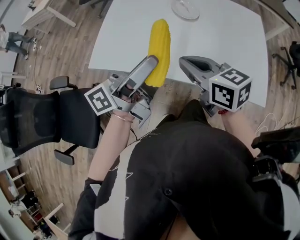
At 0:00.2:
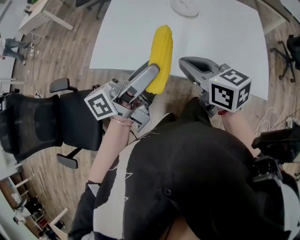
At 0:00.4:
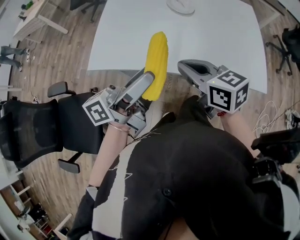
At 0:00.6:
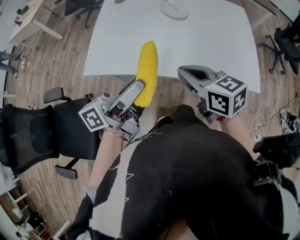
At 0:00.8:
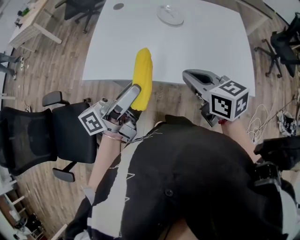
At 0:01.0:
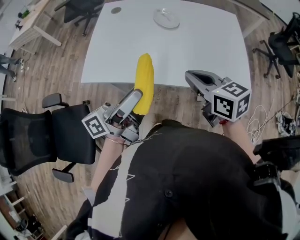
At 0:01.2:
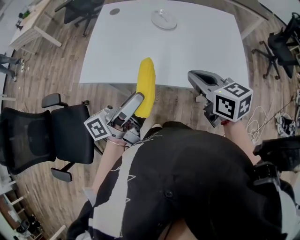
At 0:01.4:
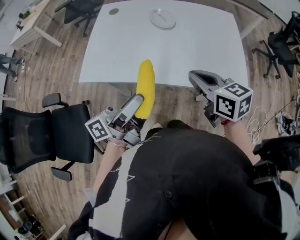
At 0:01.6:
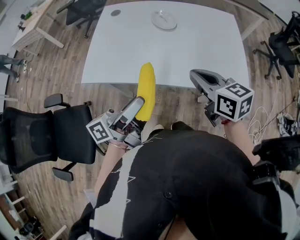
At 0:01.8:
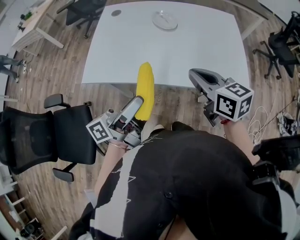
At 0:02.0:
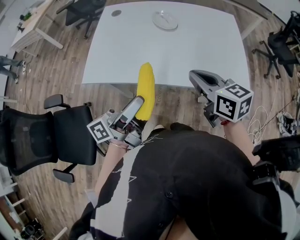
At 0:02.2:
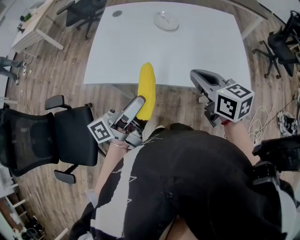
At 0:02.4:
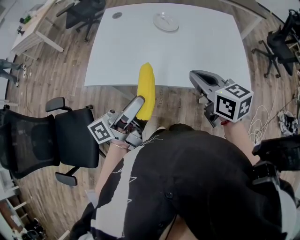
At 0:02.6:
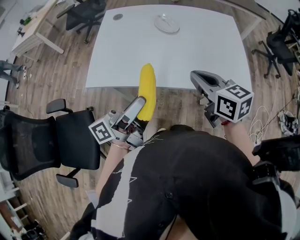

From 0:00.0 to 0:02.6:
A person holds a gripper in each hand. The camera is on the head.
From 0:00.0 to 0:01.2: The right gripper travels to the right by about 10 cm; the left gripper shifts about 5 cm backward.
From 0:01.2 to 0:02.6: The grippers stay close to where they were, moving slightly.

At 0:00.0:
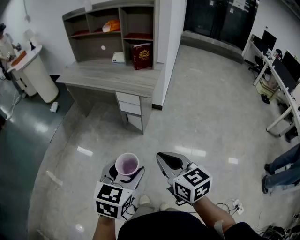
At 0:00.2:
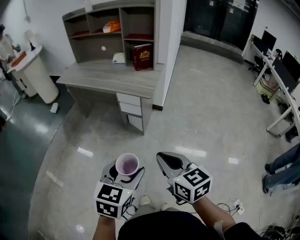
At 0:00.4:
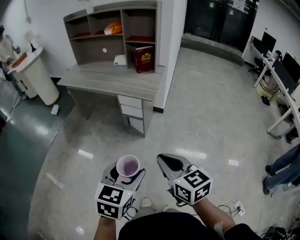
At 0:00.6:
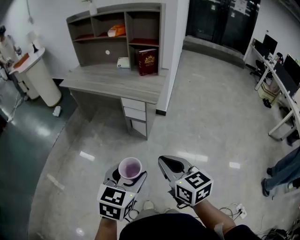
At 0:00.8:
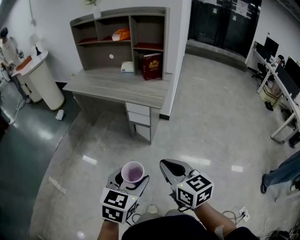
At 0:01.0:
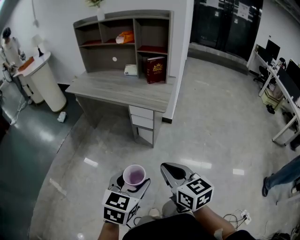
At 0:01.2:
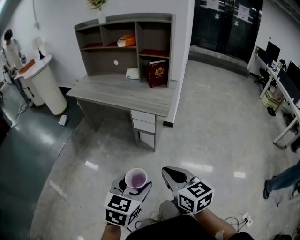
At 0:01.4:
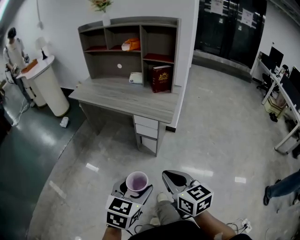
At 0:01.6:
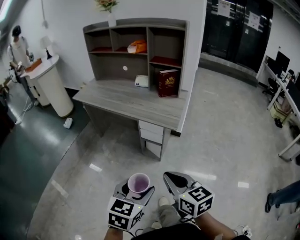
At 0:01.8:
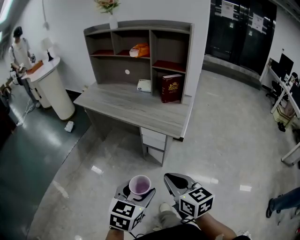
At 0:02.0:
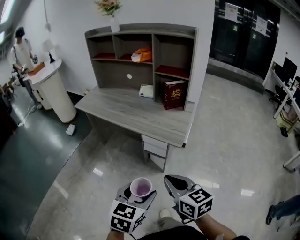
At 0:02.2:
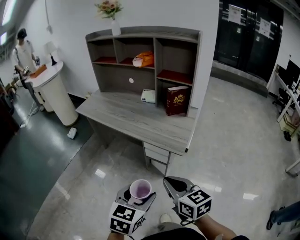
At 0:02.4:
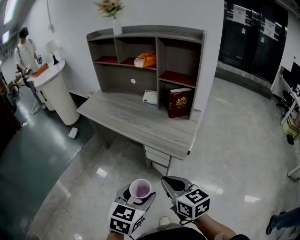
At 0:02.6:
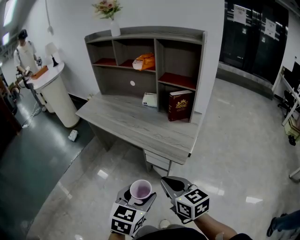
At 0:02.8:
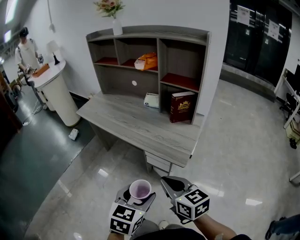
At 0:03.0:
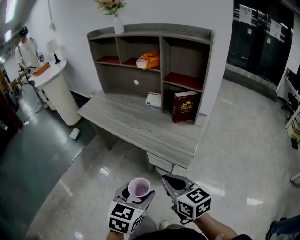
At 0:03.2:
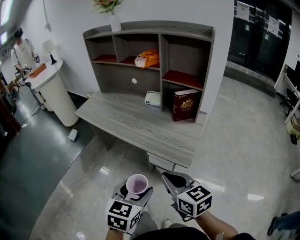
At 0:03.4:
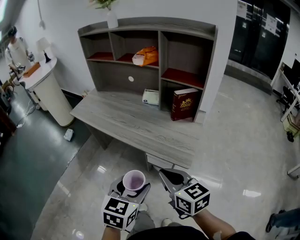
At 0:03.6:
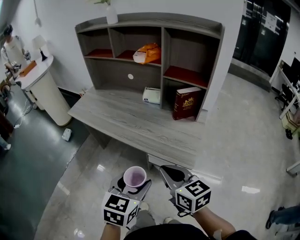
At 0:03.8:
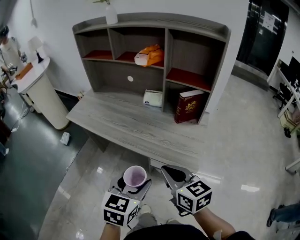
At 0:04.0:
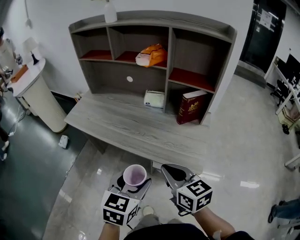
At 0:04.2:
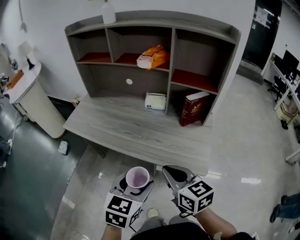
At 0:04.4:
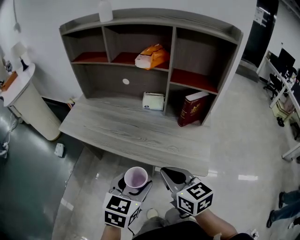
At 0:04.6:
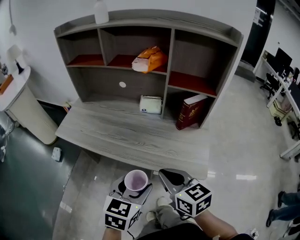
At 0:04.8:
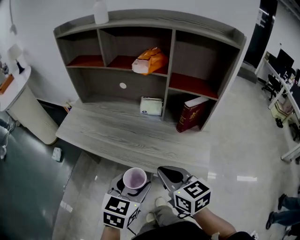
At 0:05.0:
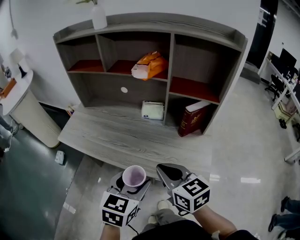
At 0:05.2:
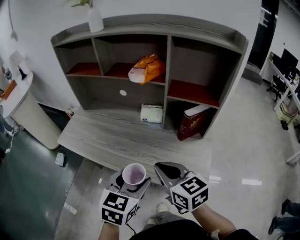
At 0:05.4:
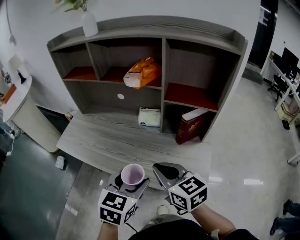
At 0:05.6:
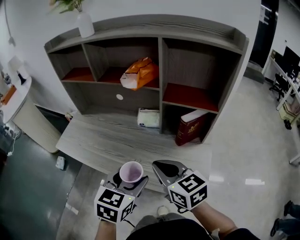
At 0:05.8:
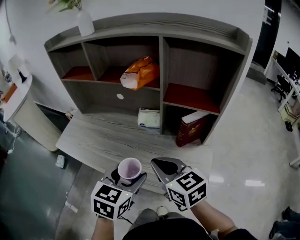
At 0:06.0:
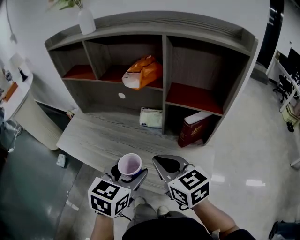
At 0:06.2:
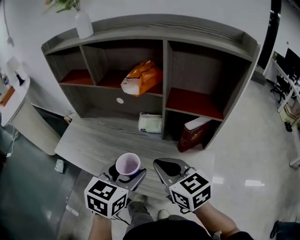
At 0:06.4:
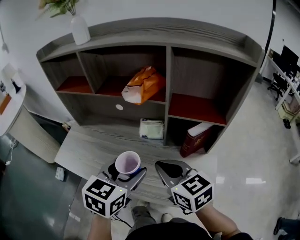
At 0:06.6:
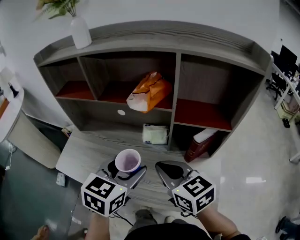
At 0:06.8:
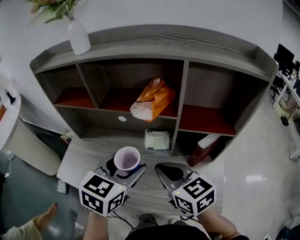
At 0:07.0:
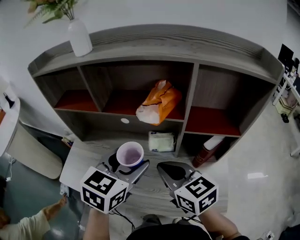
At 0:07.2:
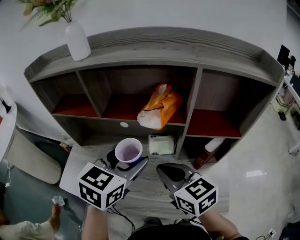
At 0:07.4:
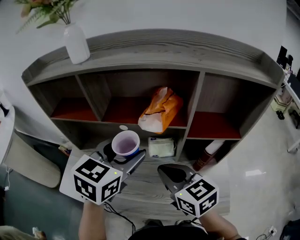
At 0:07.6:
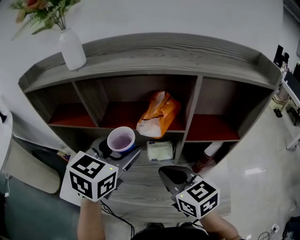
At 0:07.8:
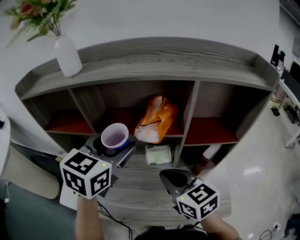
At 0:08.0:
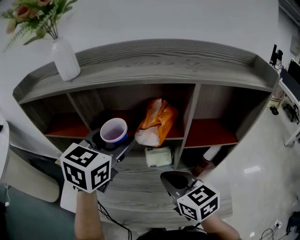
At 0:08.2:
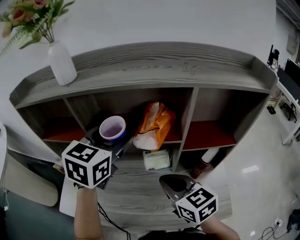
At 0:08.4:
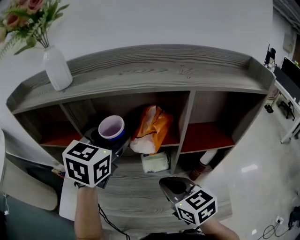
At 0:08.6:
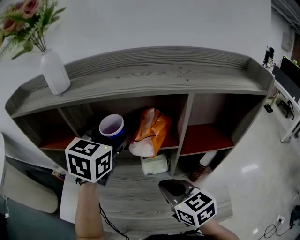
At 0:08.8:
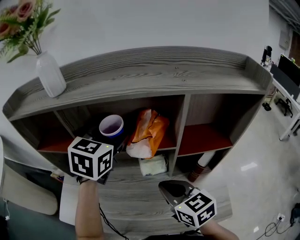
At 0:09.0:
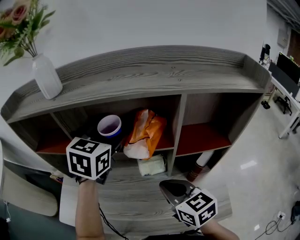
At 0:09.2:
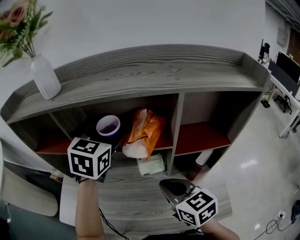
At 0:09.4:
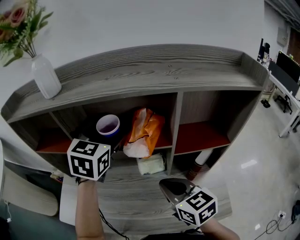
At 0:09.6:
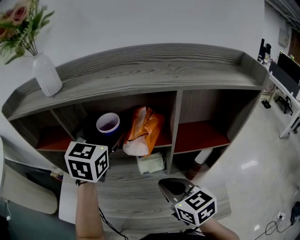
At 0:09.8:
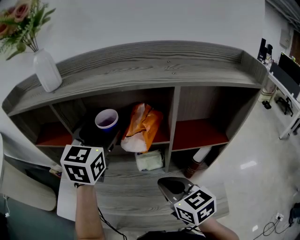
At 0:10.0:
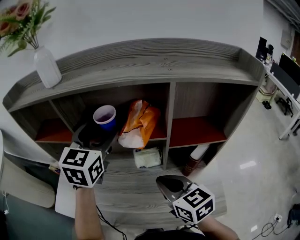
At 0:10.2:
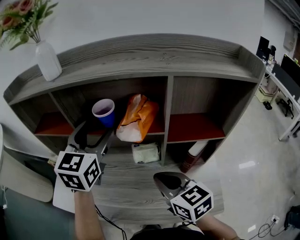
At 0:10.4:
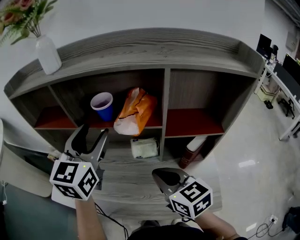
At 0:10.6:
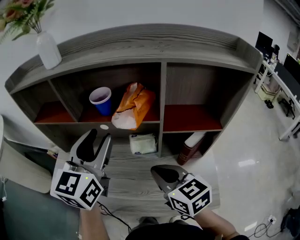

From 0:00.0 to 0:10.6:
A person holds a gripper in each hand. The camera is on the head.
From 0:00.0 to 0:01.6: Both grippers move forward and to the left, some 15 cm.
From 0:01.6 to 0:03.0: Both grippers travel together forward, about 25 cm.
From 0:03.0 to 0:04.6: The two grippers go some 25 cm forward and to the left.
From 0:04.6 to 0:06.0: Both grippers move forward, approximately 15 cm.
From 0:06.0 to 0:07.6: The right gripper heads forward and to the left, covering about 15 cm. Meanwhile the left gripper heads forward and upward, covering approximately 25 cm.
From 0:07.6 to 0:09.0: The left gripper moves forward, some 15 cm.
From 0:09.0 to 0:10.6: The left gripper is displaced backward by roughly 15 cm, and rotates approximately 20 degrees.

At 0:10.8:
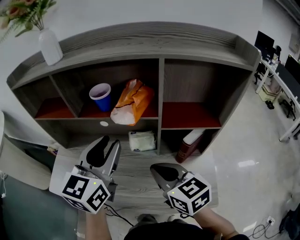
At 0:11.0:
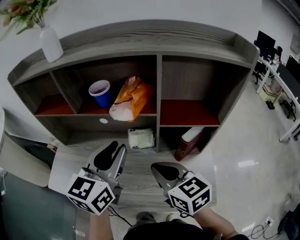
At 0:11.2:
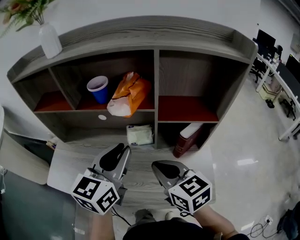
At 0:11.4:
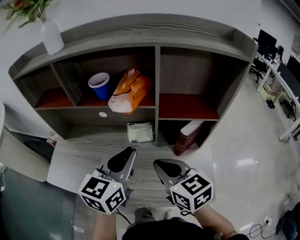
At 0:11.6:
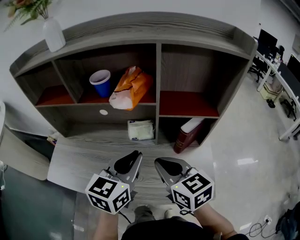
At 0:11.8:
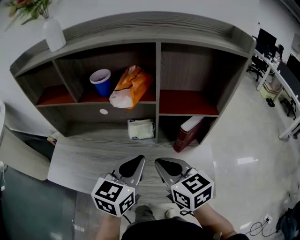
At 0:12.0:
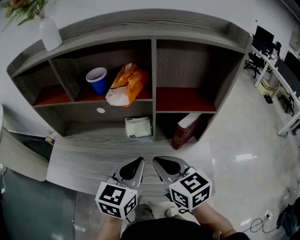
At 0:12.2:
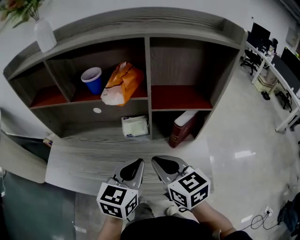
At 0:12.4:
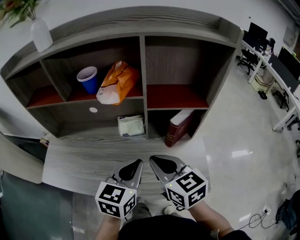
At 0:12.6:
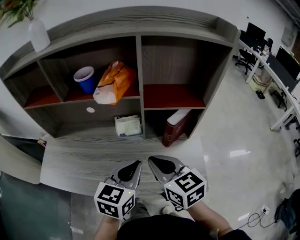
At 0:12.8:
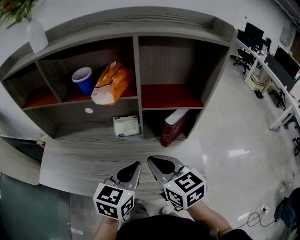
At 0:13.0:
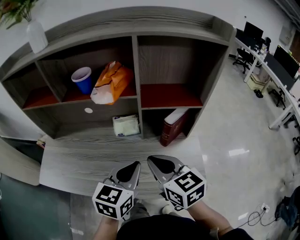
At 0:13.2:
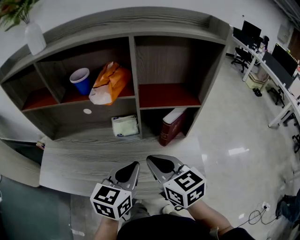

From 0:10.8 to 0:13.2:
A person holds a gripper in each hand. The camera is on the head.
From 0:10.8 to 0:12.0: The left gripper heads downward, backward and to the right, covering some 15 cm.
From 0:12.0 to 0:13.2: The grippers make only small movements.

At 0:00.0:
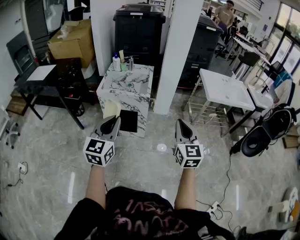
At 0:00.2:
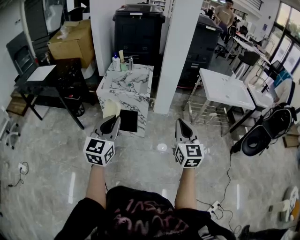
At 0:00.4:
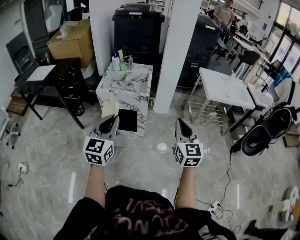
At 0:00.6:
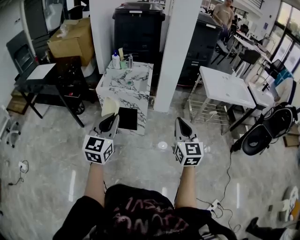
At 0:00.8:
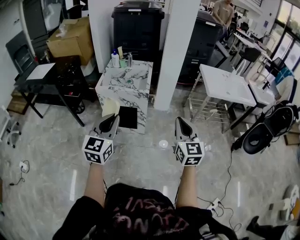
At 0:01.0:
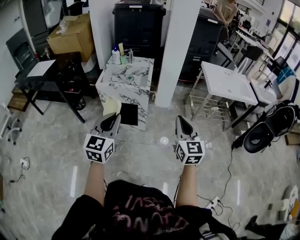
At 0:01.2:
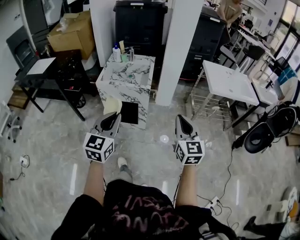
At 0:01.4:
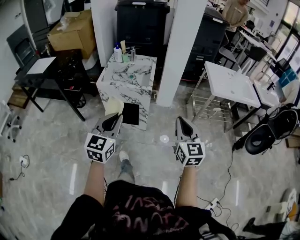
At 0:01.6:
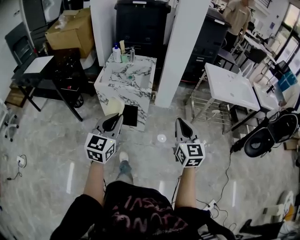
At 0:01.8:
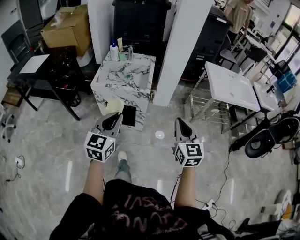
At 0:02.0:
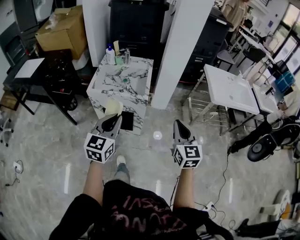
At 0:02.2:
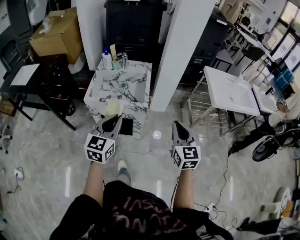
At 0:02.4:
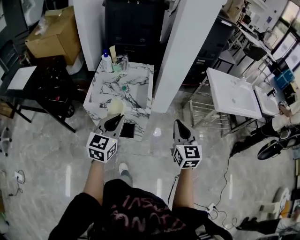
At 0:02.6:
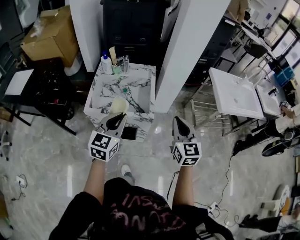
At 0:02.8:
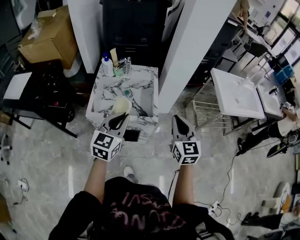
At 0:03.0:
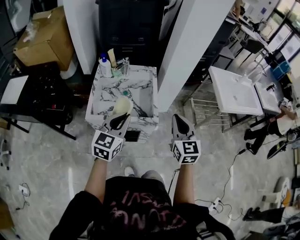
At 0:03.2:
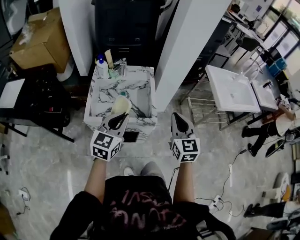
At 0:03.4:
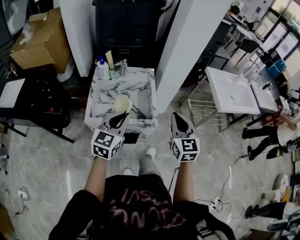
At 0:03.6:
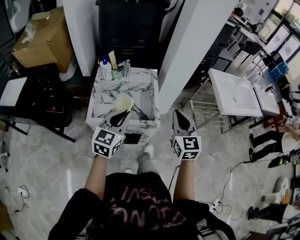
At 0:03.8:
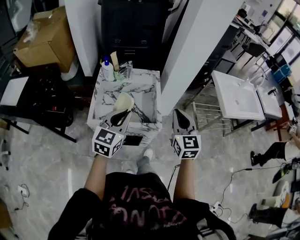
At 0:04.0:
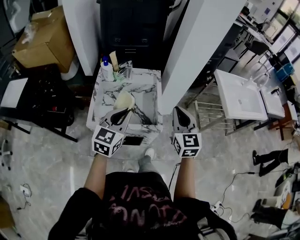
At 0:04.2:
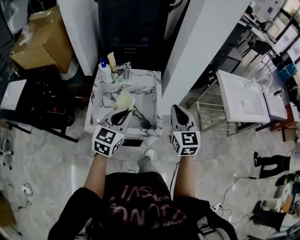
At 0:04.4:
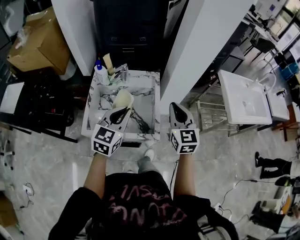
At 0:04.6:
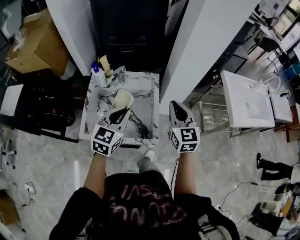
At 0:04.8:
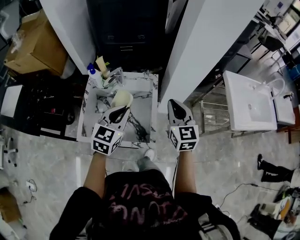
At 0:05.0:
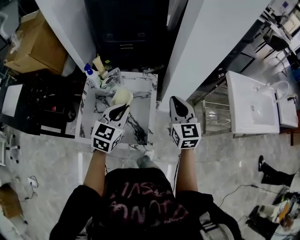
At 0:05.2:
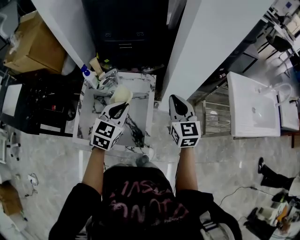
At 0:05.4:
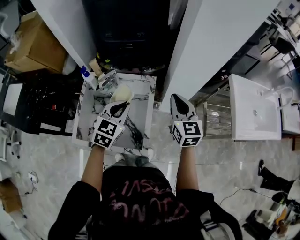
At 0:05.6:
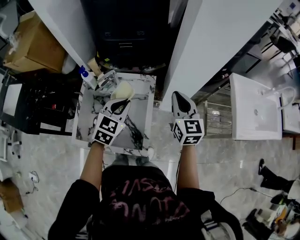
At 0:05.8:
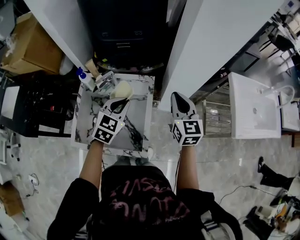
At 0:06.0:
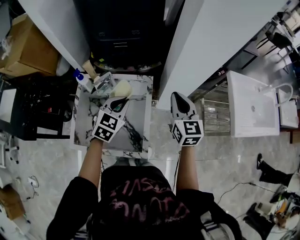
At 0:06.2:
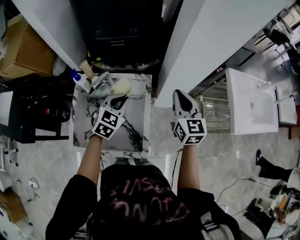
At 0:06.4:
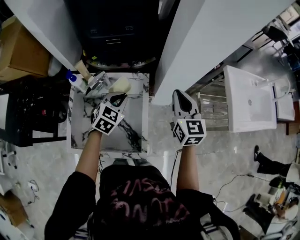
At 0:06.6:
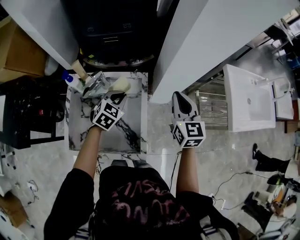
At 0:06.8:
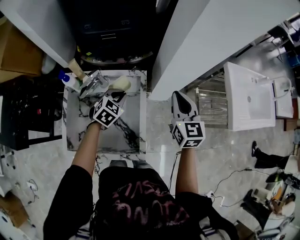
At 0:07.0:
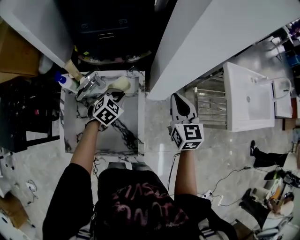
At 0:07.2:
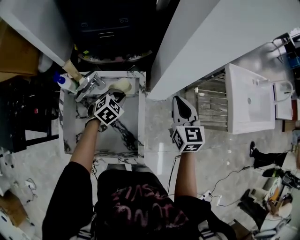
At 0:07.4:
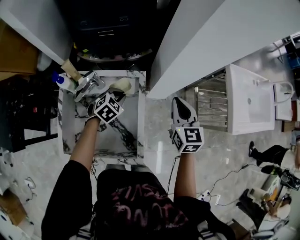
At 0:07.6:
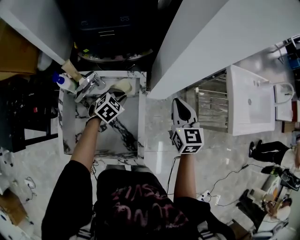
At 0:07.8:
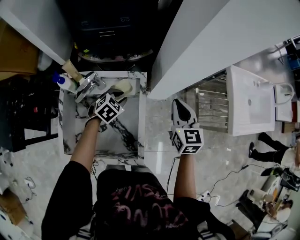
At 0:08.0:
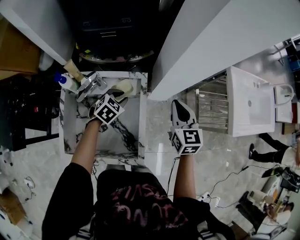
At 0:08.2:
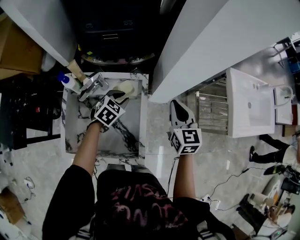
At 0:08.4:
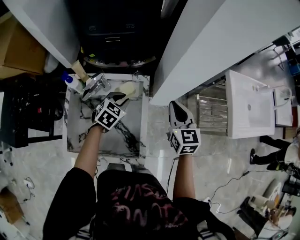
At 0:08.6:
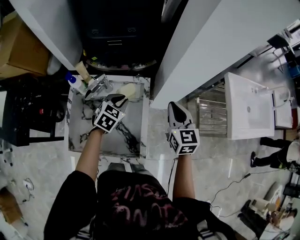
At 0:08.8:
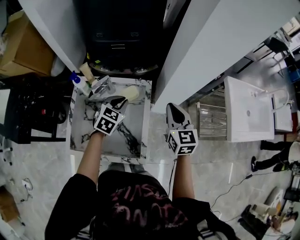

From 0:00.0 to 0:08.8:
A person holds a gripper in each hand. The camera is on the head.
From 0:00.0 to 0:01.4: The grippers stay close to where they were, moving slightly.
From 0:01.4 to 0:03.0: The left gripper is displaced forward by roughly 35 cm. Meanwhile the right gripper heads forward and to the left, covering about 35 cm.
From 0:03.0 to 0:04.4: Both grippers move forward, approximately 15 cm.
From 0:04.4 to 0:05.8: Both grippers move forward, some 20 cm.
From 0:05.8 to 0:07.4: The left gripper is displaced downward and forward by approximately 20 cm, and rotates roughly 30 degrees, while the right gripper goes about 5 cm downward.
From 0:07.4 to 0:08.8: The left gripper goes about 10 cm upward, and swivels roughly 20 degrees; the right gripper shifts by roughly 5 cm.
